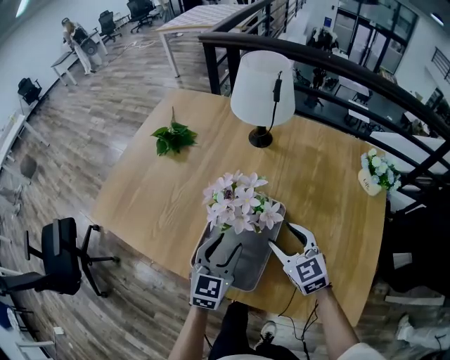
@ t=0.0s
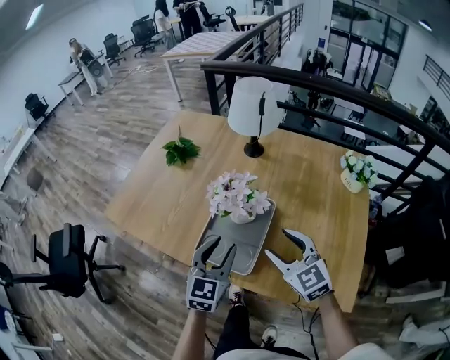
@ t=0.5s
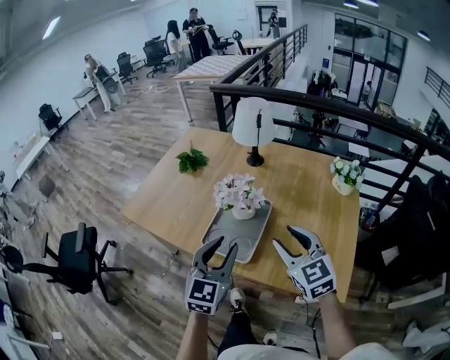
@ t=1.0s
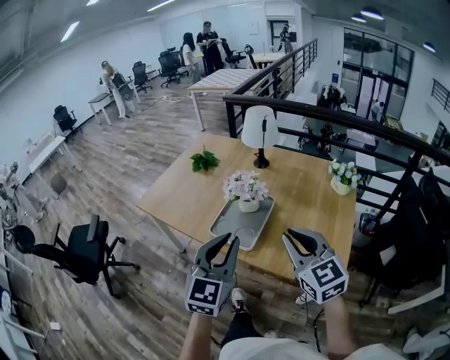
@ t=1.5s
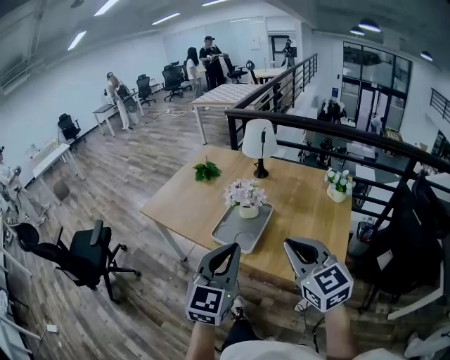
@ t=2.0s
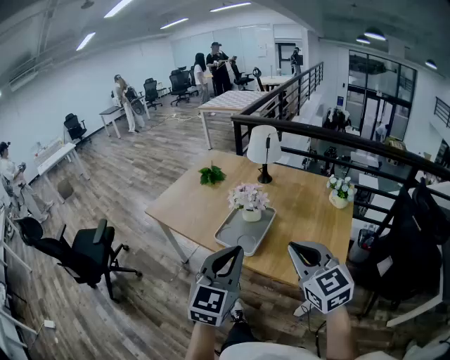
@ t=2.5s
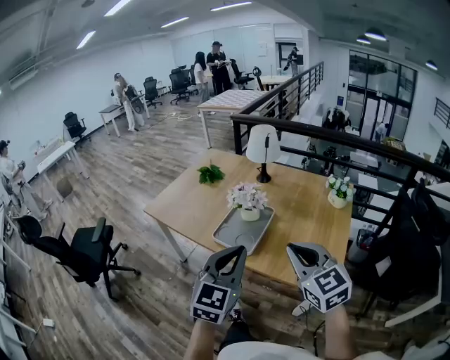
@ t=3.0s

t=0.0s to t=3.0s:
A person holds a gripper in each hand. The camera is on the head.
t=0.0s to t=1.5s: The left gripper moves upward and backward, about 40 cm, turns by roughly 20 degrees, and closes up; the right gripper moves backward and upward, roughly 40 cm, and closes.
t=1.5s to t=3.0s: Both grippers move backward, approximately 5 cm.

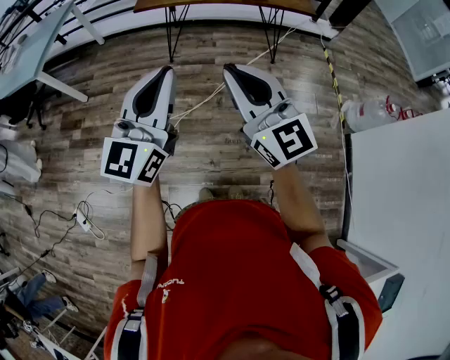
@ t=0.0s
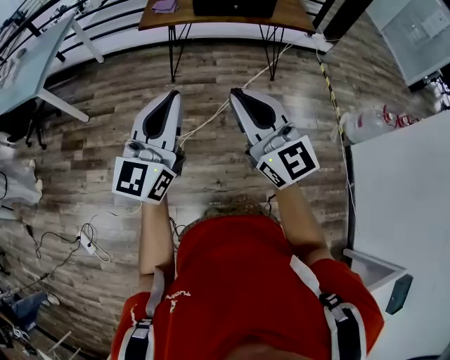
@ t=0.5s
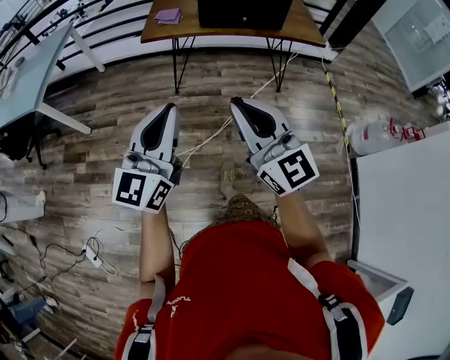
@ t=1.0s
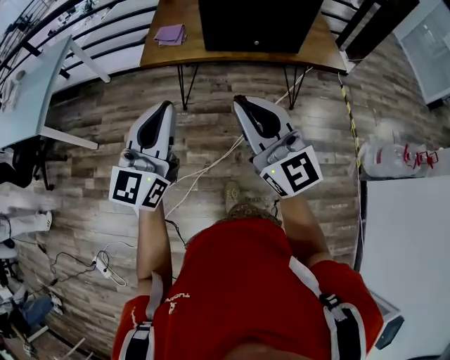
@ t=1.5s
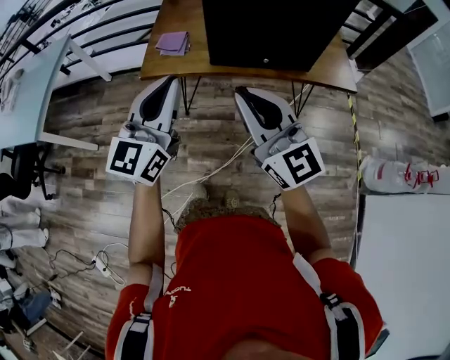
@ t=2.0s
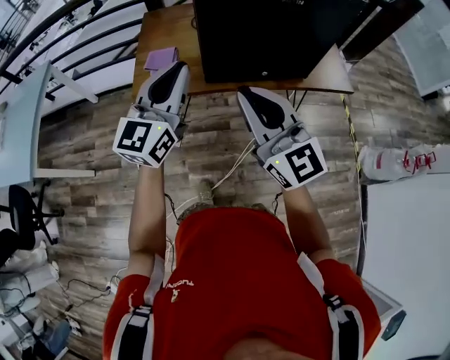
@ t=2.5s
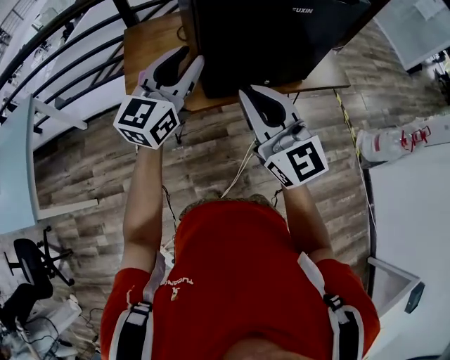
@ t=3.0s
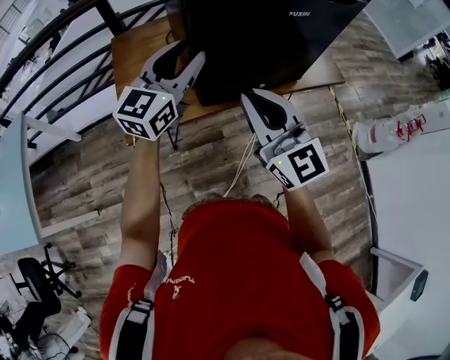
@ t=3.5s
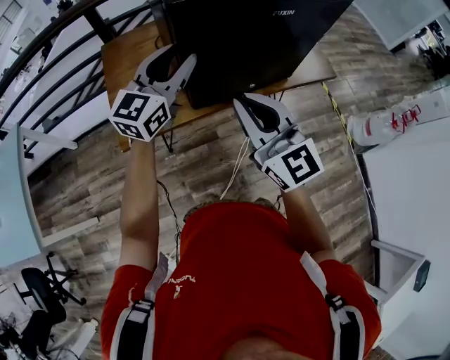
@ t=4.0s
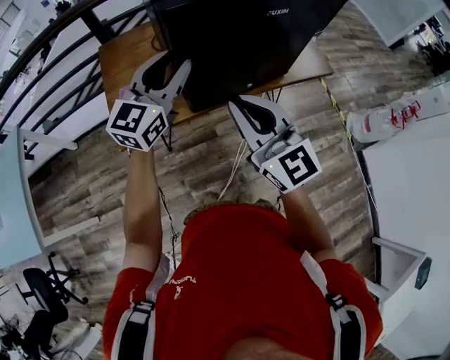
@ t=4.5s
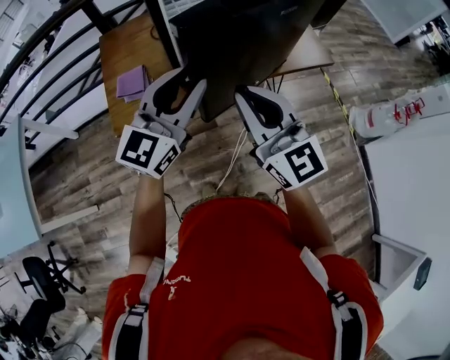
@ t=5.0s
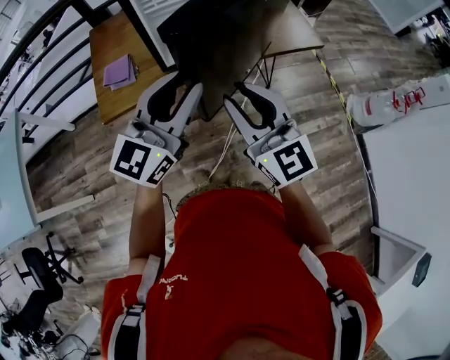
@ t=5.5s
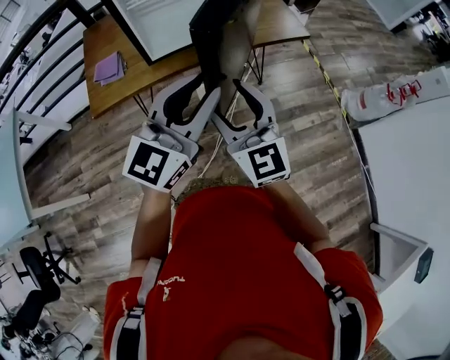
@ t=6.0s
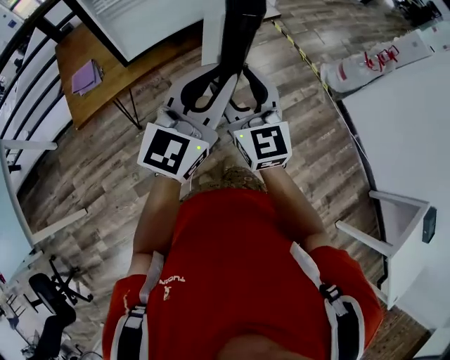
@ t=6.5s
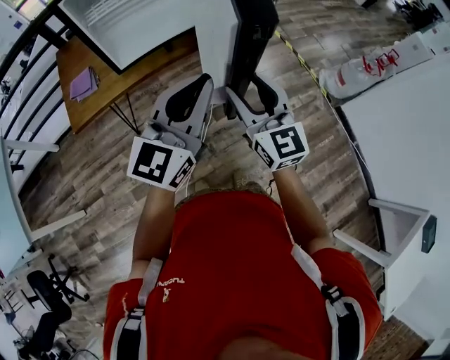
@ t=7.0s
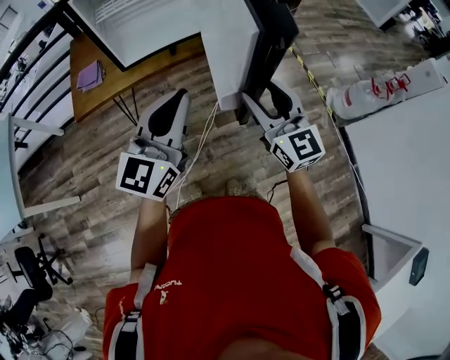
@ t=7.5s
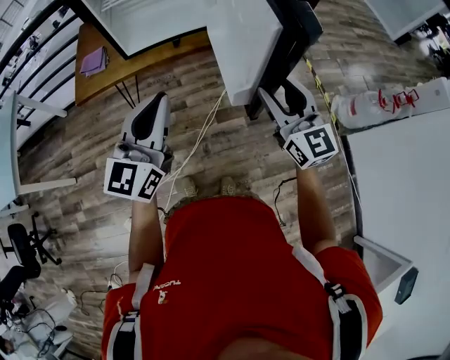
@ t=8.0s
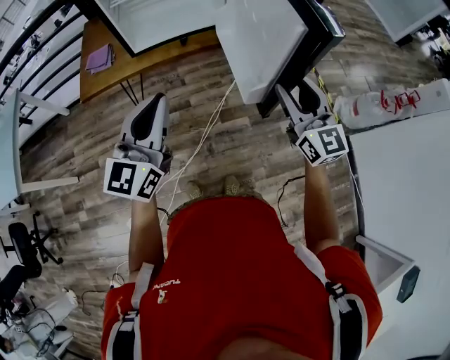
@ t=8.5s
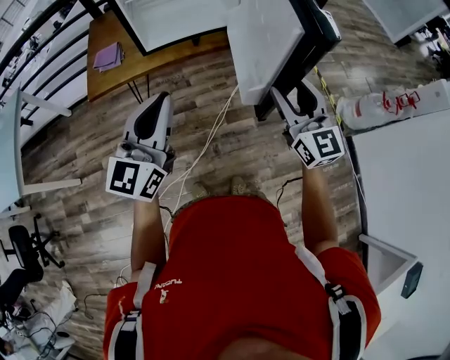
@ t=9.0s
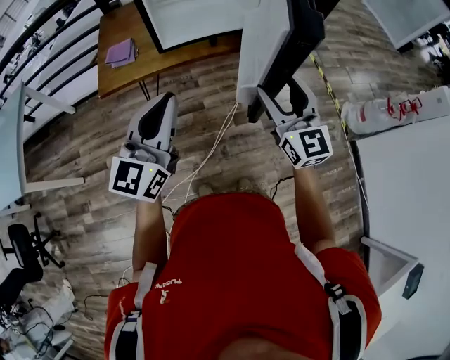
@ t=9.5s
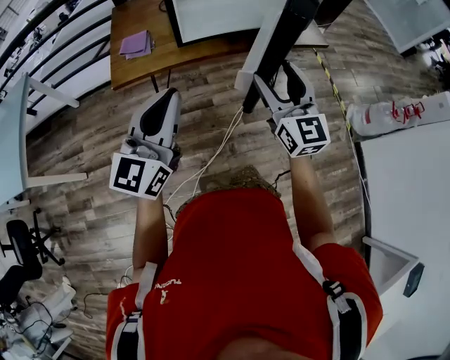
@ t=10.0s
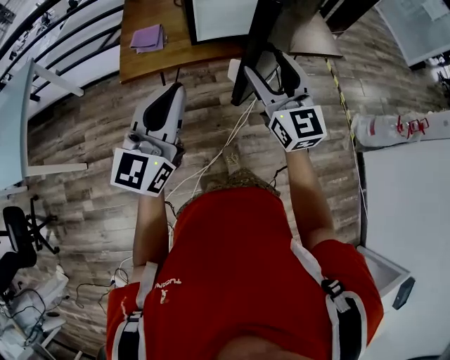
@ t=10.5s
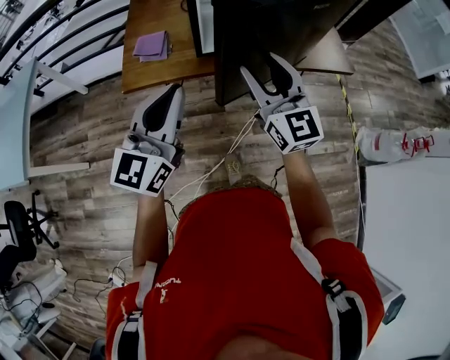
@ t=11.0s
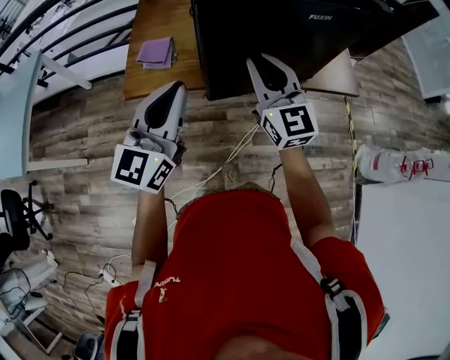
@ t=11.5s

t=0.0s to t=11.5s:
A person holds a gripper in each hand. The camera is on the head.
t=0.0s to t=2.0s: Both grippers are carried forward, about 50 cm.
t=2.0s to t=4.0s: The left gripper shifts by roughly 30 cm, rotates about 30 degrees, and opens. Meanwhile the right gripper shifts by about 20 cm, and swivels roughly 20 degrees.
t=4.0s to t=6.0s: The right gripper heads to the right, backward and downward, covering roughly 20 cm, and opens; the left gripper travels backward and to the right by some 30 cm.
t=6.0s to t=7.5s: The right gripper is displaced to the right by roughly 20 cm; the left gripper shifts approximately 10 cm to the right, and closes its fingers.
t=7.5s to t=9.5s: The left gripper travels to the left by some 15 cm, while the right gripper moves to the left, roughly 10 cm.
t=9.5s to t=11.5s: Both grippers move forward and to the left, roughly 25 cm. The right gripper closes its fingers.

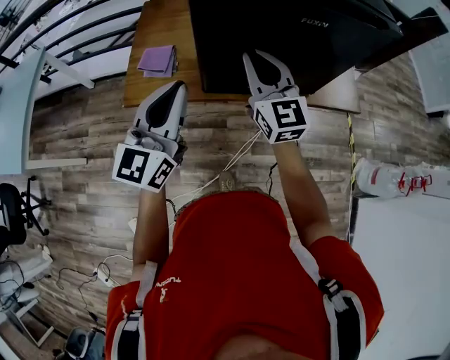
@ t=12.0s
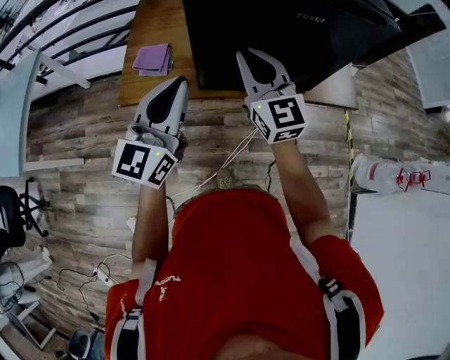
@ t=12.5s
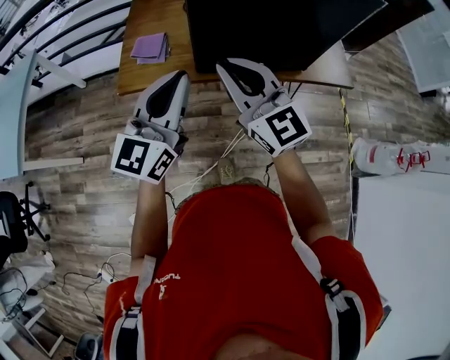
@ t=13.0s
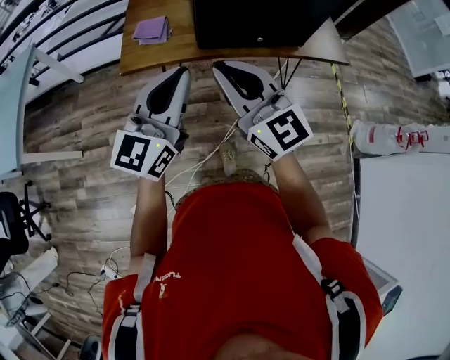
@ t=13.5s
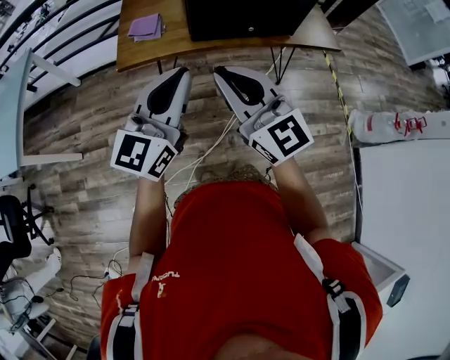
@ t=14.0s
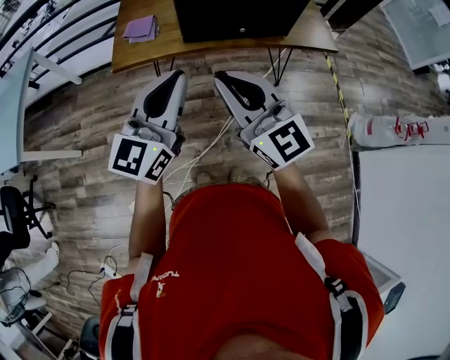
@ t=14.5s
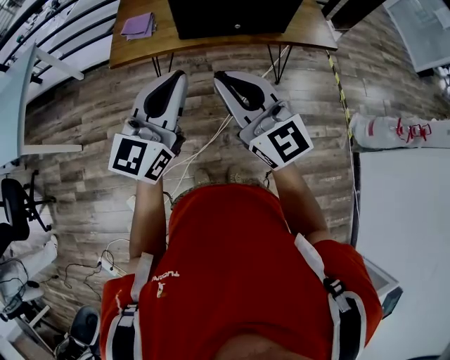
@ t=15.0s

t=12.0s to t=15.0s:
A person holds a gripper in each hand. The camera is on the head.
t=12.0s to t=13.5s: The left gripper is displaced backward by some 15 cm. The right gripper goes about 25 cm backward.
t=13.5s to t=15.0s: The right gripper goes some 10 cm backward and to the right. Meanwhile the left gripper is displaced to the right and backward by roughly 10 cm.

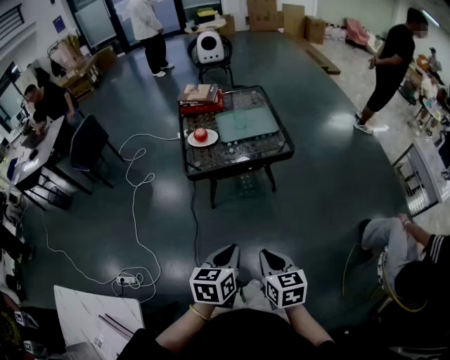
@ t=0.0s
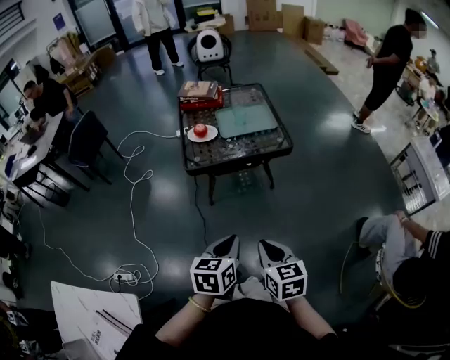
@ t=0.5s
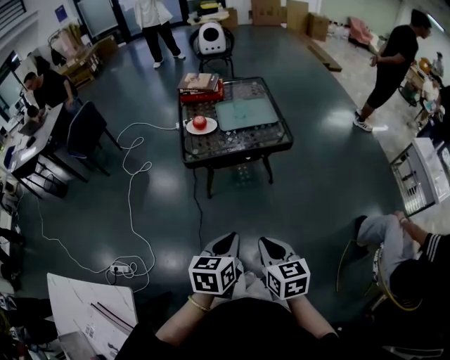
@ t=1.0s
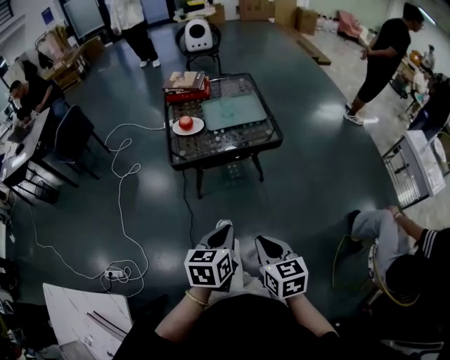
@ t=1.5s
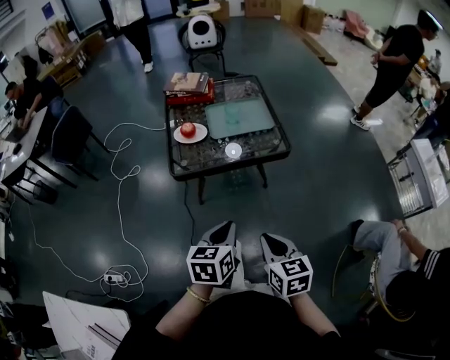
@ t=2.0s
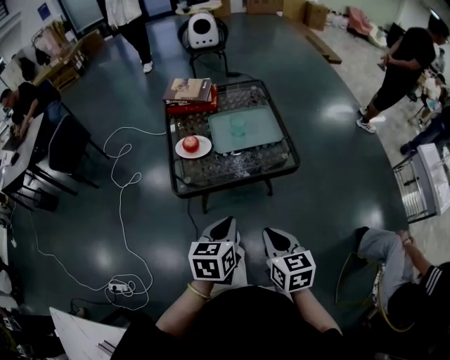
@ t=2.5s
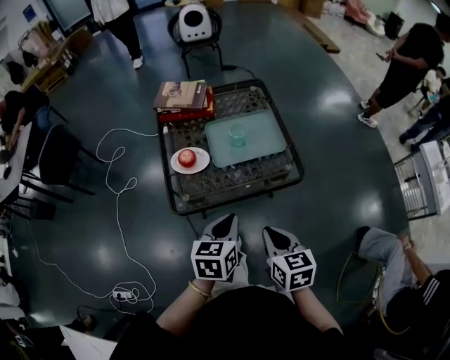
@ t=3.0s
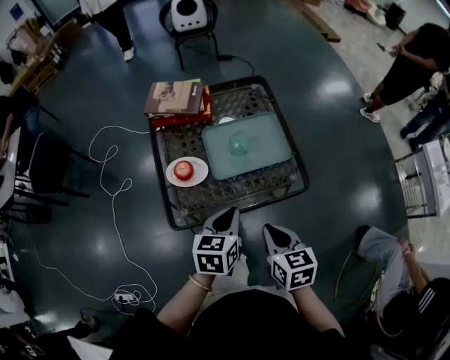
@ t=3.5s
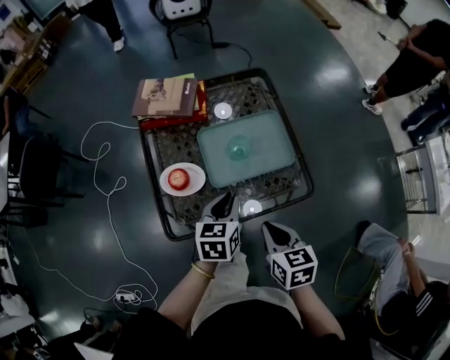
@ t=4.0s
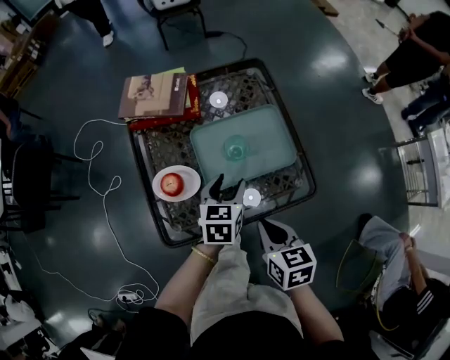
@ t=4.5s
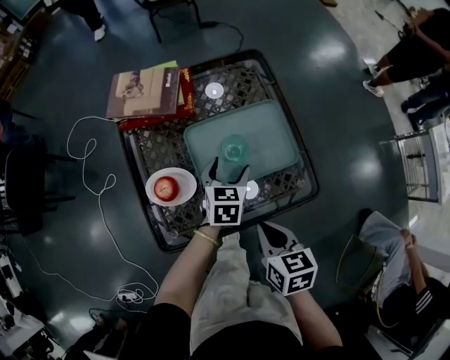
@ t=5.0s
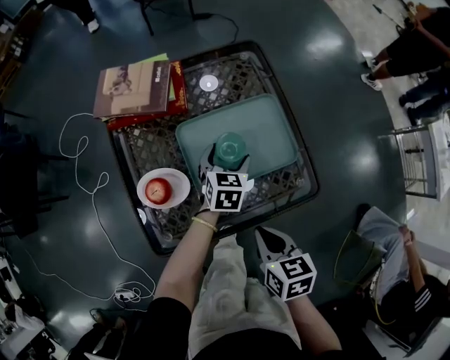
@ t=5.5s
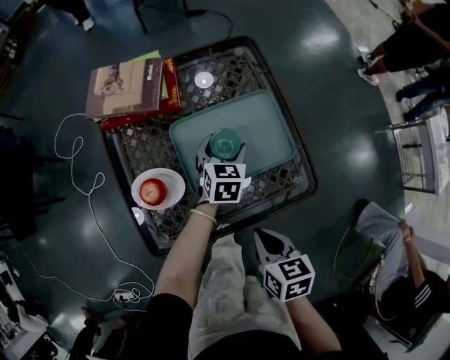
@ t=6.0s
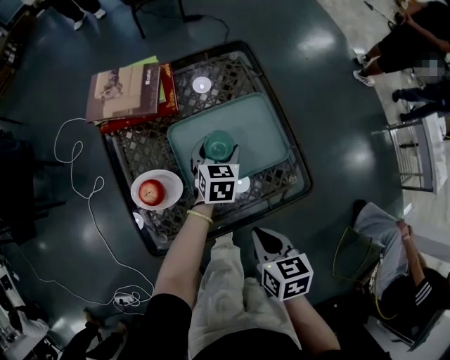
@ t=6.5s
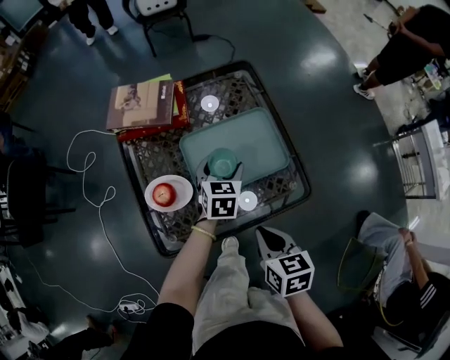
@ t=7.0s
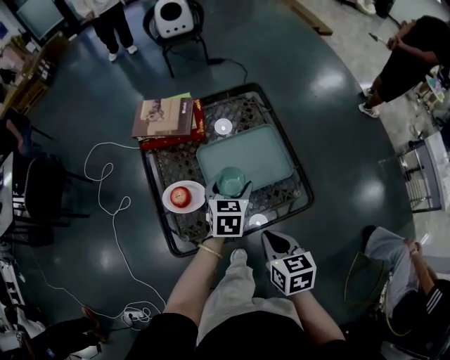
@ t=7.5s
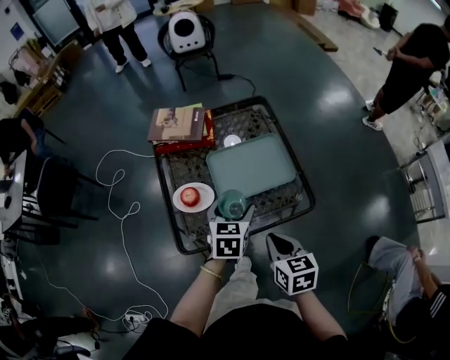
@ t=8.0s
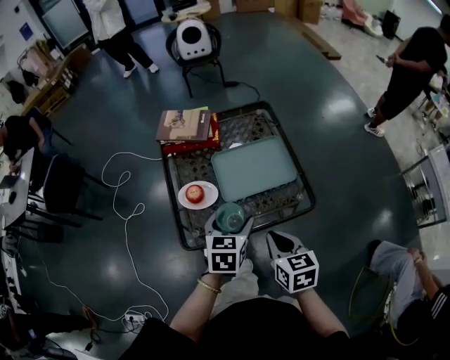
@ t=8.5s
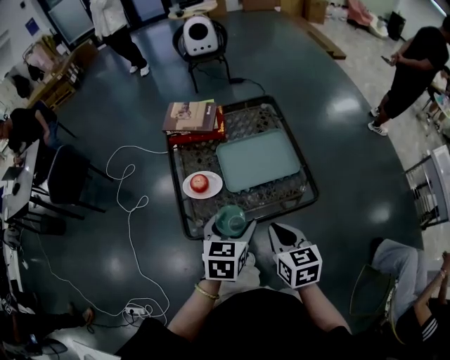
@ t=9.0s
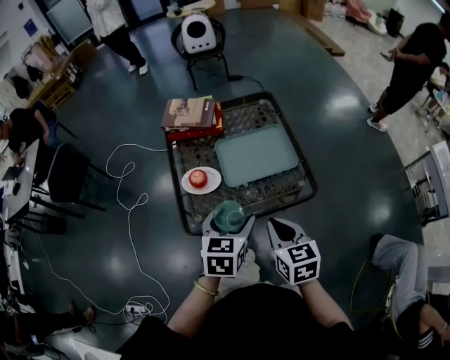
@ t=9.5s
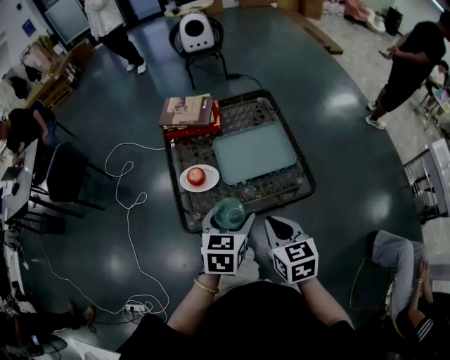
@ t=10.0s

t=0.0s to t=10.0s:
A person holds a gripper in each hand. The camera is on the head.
t=0.0s to t=2.0s: The grippers both shift forward by roughly 10 cm.
t=2.0s to t=4.0s: The grippers both shift forward by approximately 40 cm.
t=4.0s to t=6.0s: The left gripper shifts about 25 cm forward and downward, and opens, while the right gripper heads downward, covering roughly 10 cm.
t=6.0s to t=8.0s: The right gripper travels upward by about 10 cm. The left gripper moves backward and upward, some 25 cm.
t=8.0s to t=10.0s: The left gripper heads backward and upward, covering about 15 cm, while the right gripper ends up some 5 cm from where it was.
